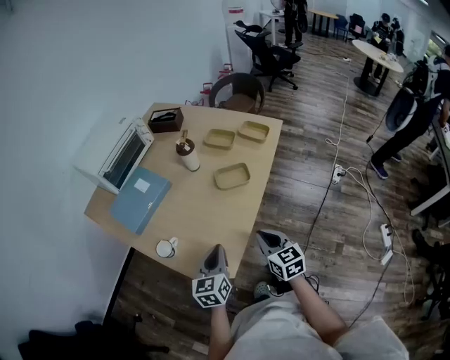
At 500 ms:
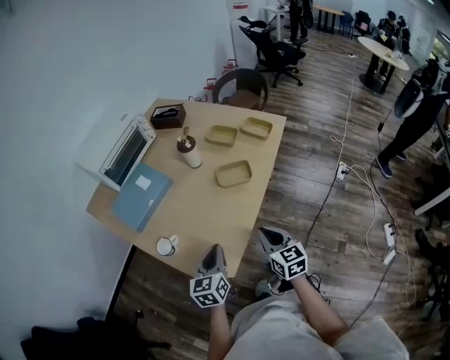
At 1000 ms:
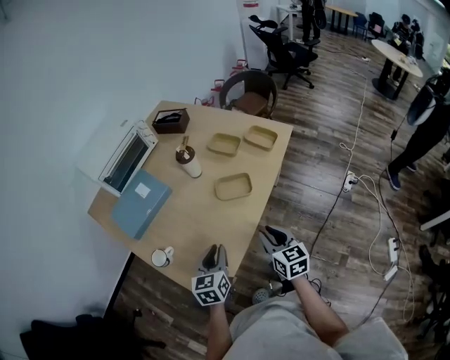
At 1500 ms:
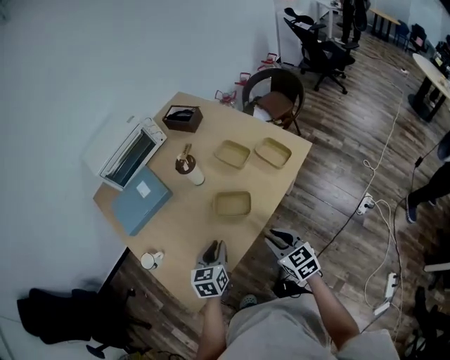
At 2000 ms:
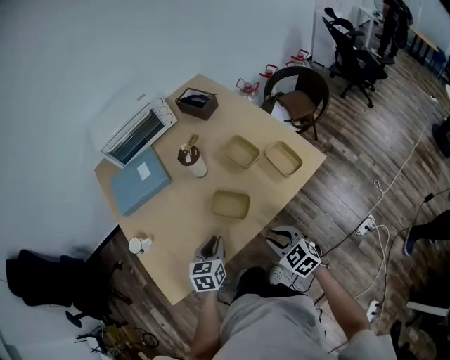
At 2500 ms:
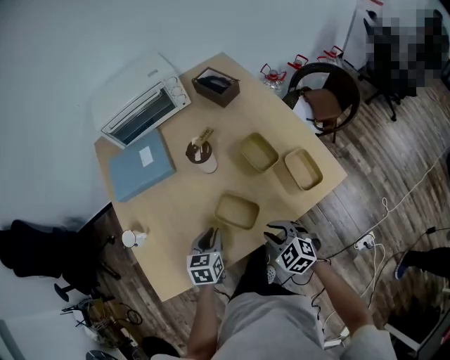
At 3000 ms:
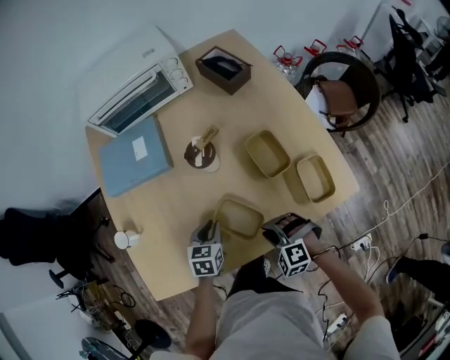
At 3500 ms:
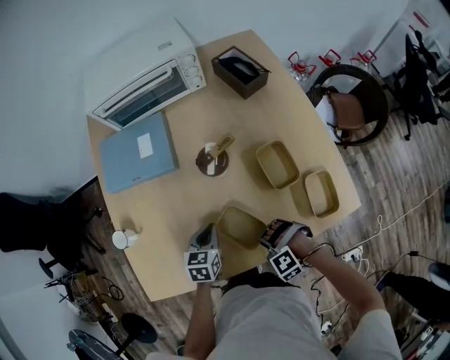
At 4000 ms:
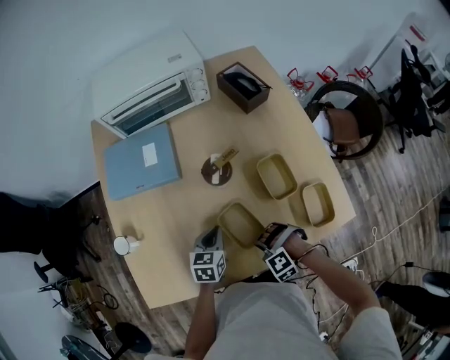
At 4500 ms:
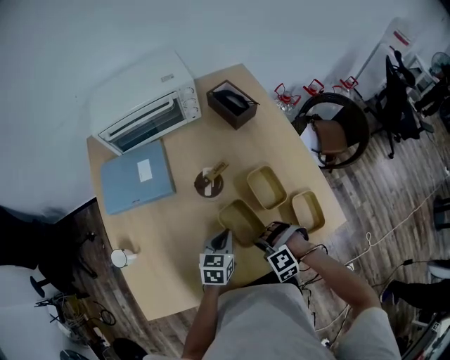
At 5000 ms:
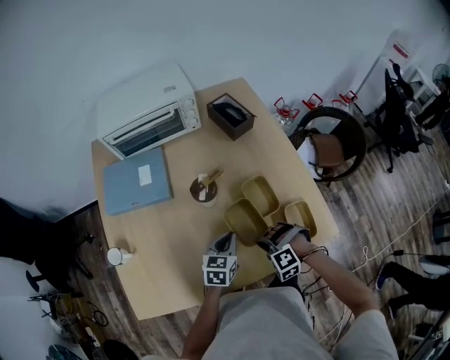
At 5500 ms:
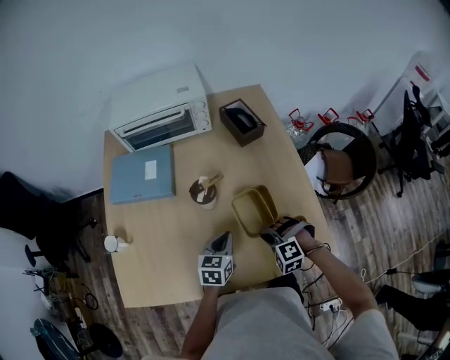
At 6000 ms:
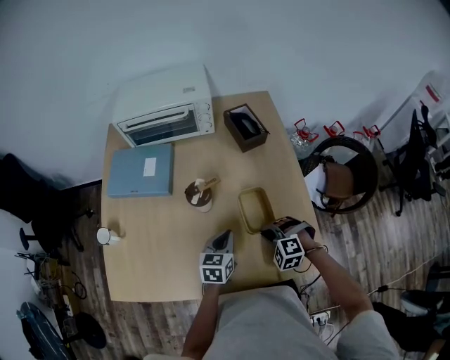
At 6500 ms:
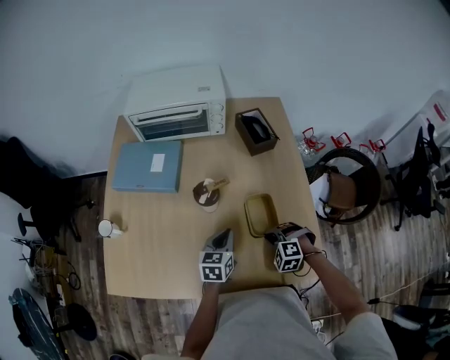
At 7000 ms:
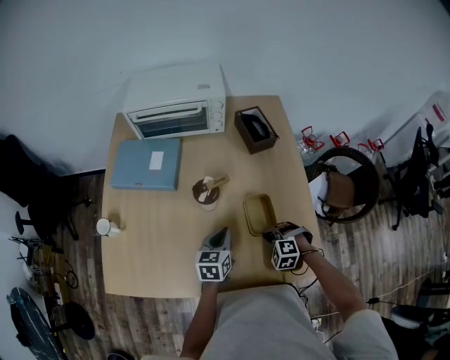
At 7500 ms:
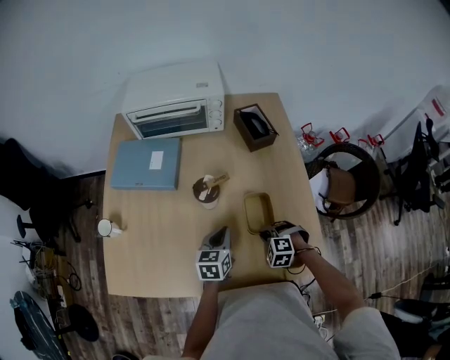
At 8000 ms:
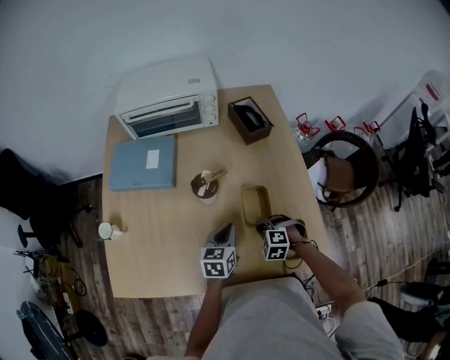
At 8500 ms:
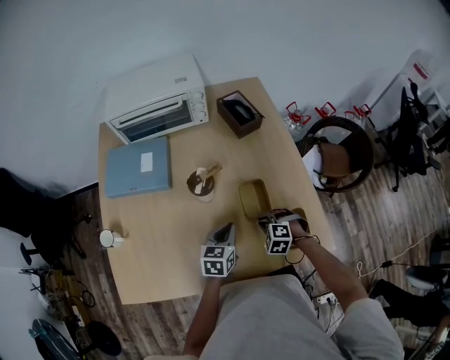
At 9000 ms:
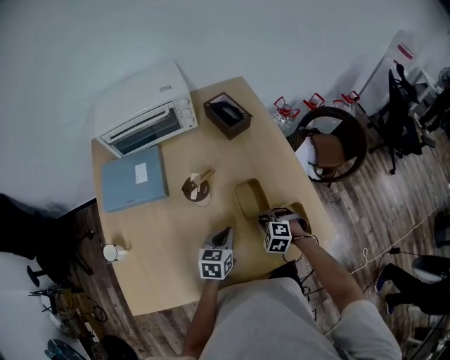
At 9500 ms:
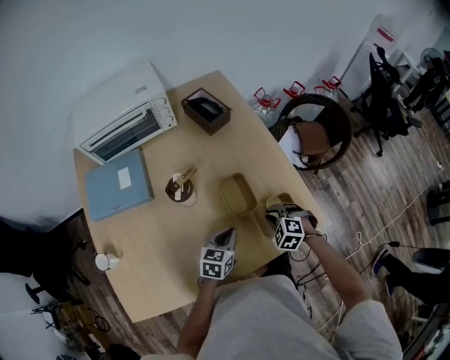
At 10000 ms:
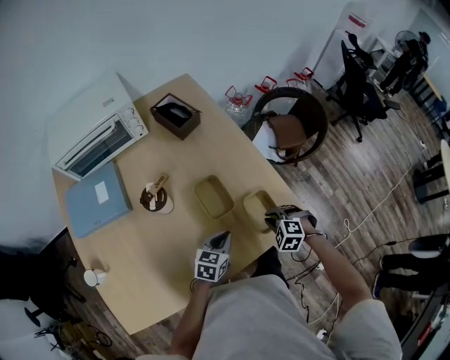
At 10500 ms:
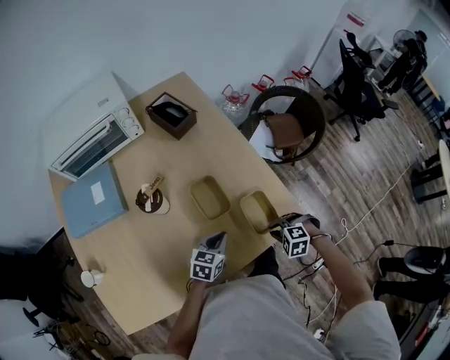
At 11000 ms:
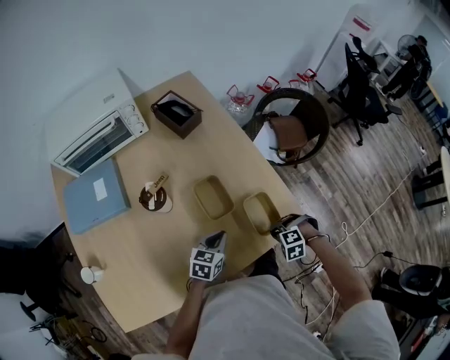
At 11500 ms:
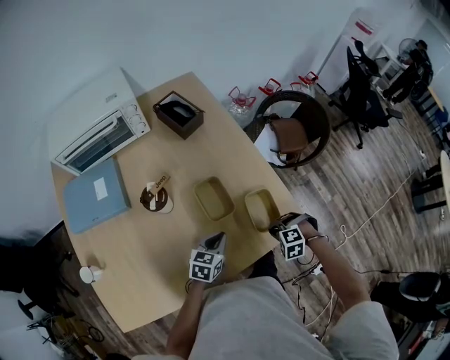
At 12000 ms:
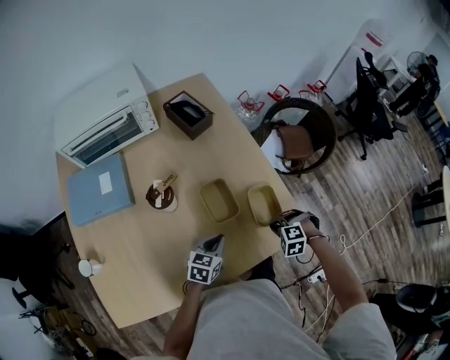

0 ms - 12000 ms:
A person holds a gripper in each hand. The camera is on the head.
0 ms - 2000 ms: The right gripper moves roughly 30 cm, turns by some 50 degrees, and opens up, while the left gripper ends up roughly 25 cm from where it was, and rotates roughly 30 degrees.
2000 ms - 4000 ms: The two grippers go about 20 cm forward and downward. The right gripper rolls counterclockwise, seen from behind, by roughly 80 degrees.
4000 ms - 6000 ms: The right gripper travels to the right, forward and upward by about 20 cm. Meanwhile the left gripper heads to the right, covering roughly 15 cm.
6000 ms - 8000 ms: The right gripper goes roughly 5 cm downward.
8000 ms - 10000 ms: The left gripper shifts by roughly 15 cm, and changes its angle by some 40 degrees; the right gripper changes place by roughly 15 cm, and turns by about 30 degrees.

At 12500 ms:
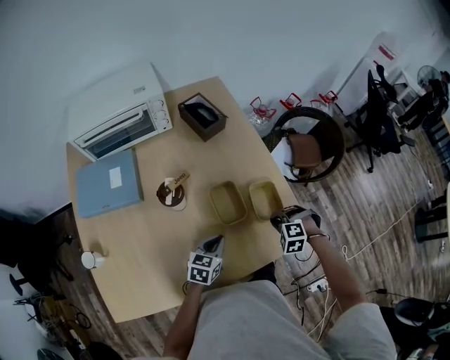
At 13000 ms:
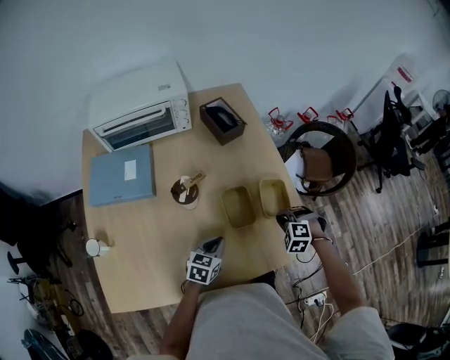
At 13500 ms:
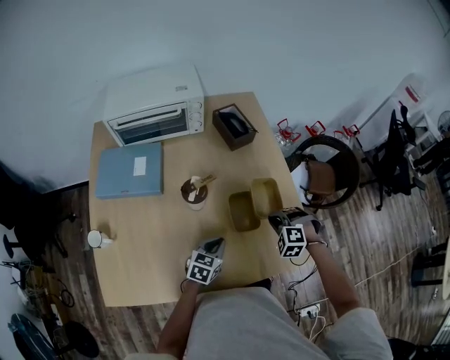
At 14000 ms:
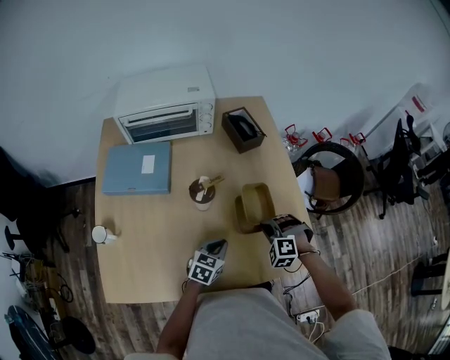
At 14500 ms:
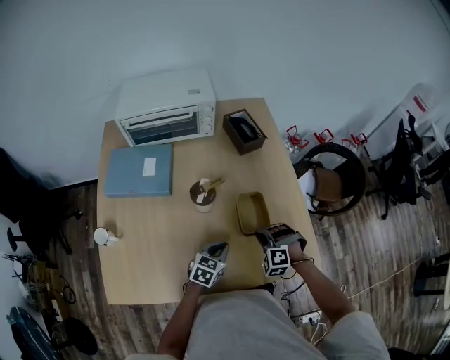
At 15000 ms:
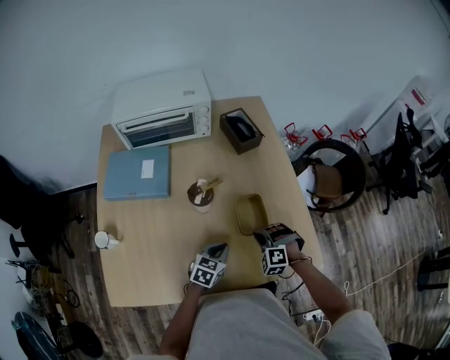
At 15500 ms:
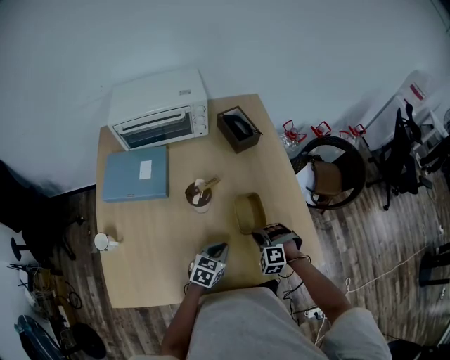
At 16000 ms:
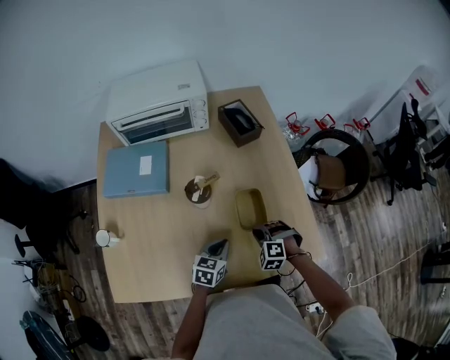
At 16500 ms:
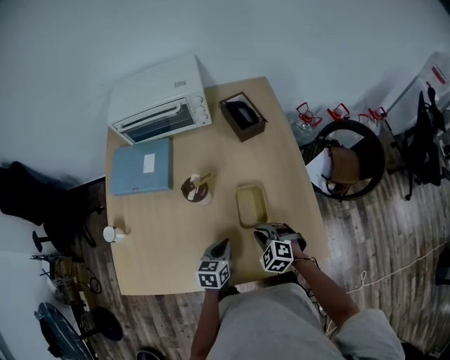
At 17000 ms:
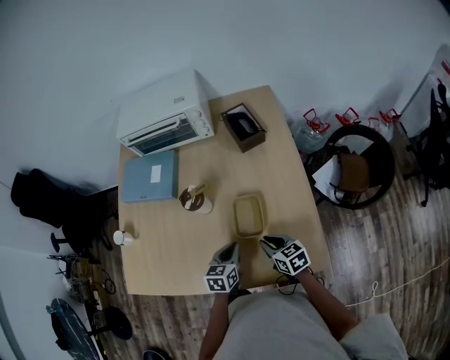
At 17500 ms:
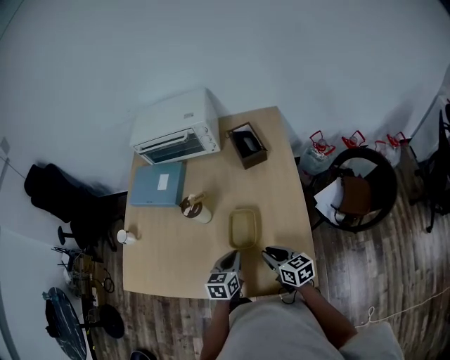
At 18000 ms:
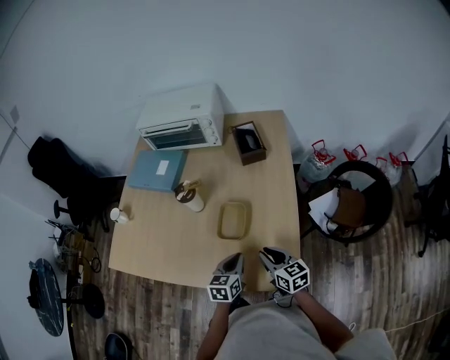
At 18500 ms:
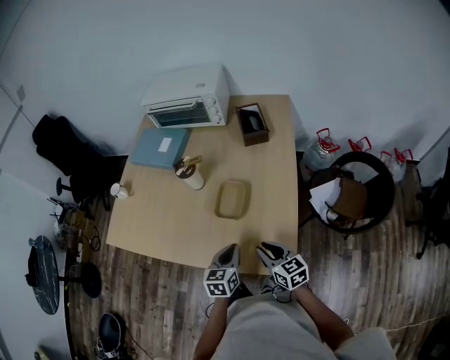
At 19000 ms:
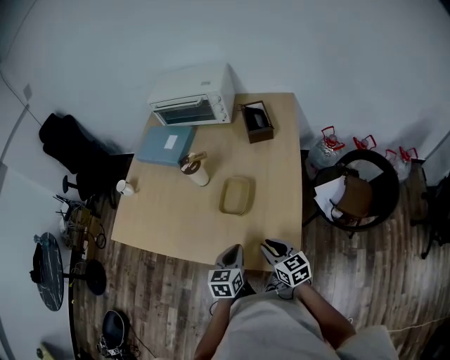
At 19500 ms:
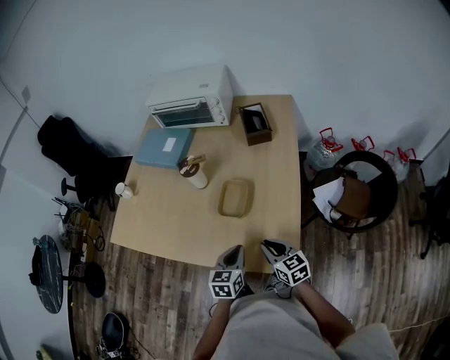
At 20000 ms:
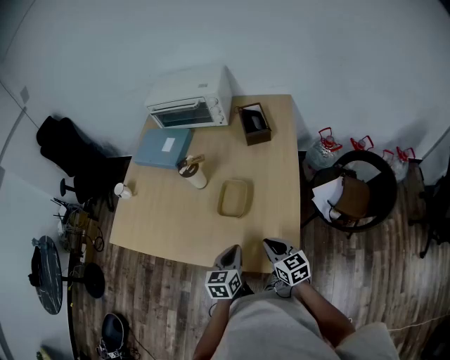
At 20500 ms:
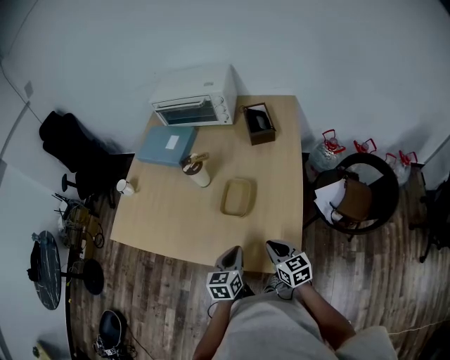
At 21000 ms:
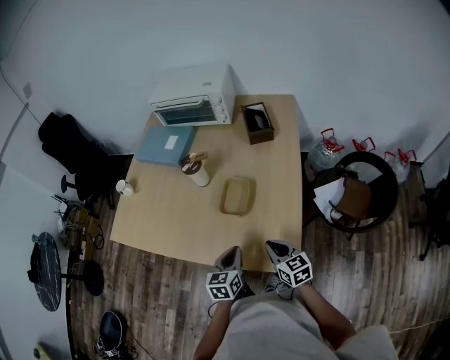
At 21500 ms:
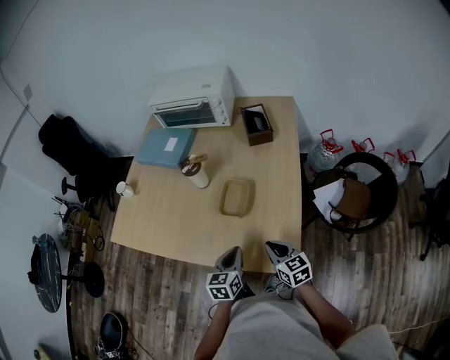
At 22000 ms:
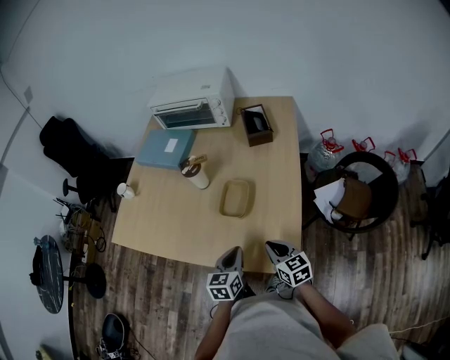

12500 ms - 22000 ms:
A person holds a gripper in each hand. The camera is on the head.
12500 ms - 14500 ms: The right gripper shifts approximately 15 cm to the left, and swivels some 20 degrees. Meanwhile the left gripper goes approximately 5 cm to the left.
14500 ms - 16500 ms: The left gripper rotates about 20 degrees, while the right gripper rotates approximately 30 degrees.
16500 ms - 18000 ms: The left gripper is displaced to the right and backward by about 15 cm; the right gripper shifts some 15 cm to the right, upward and backward, and tilts its fingers approximately 30 degrees upward.
18000 ms - 20000 ms: The left gripper travels backward by about 5 cm.
20000 ms - 22000 ms: There are only small adjustments of the grippers.

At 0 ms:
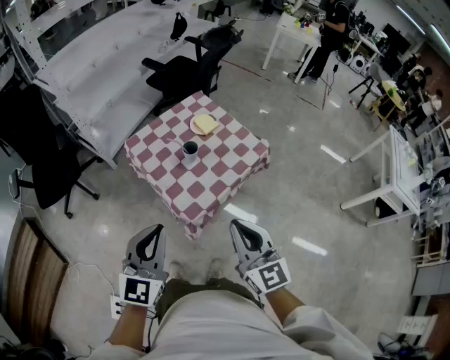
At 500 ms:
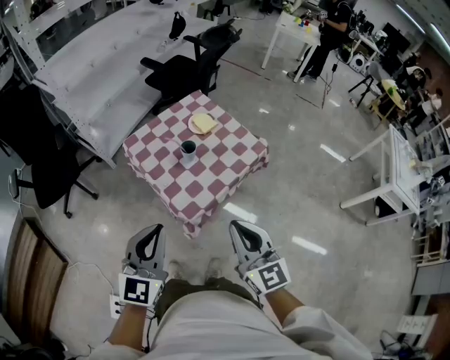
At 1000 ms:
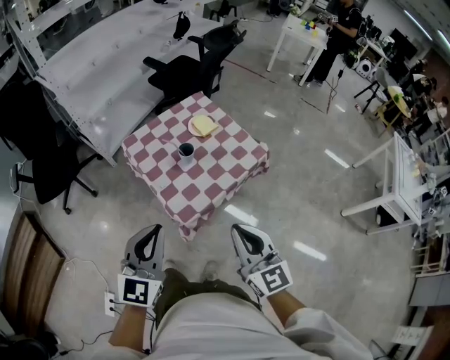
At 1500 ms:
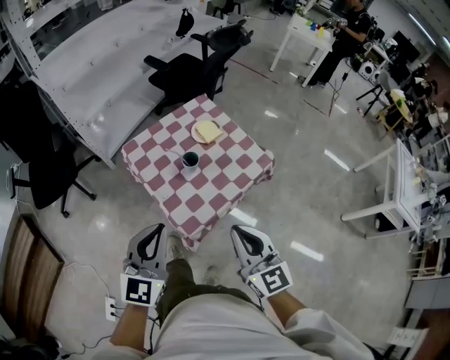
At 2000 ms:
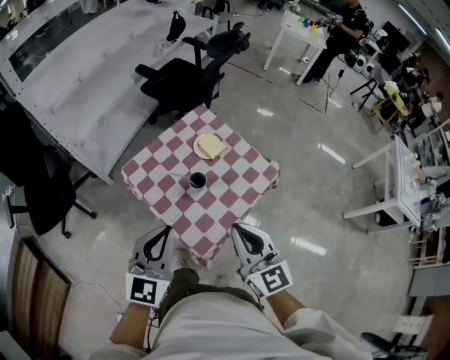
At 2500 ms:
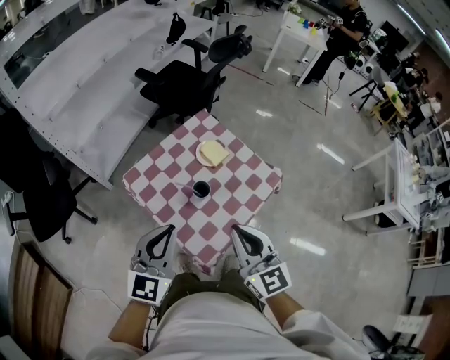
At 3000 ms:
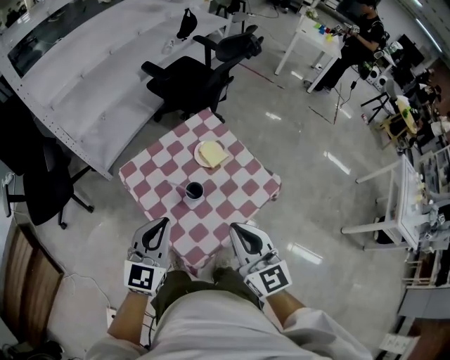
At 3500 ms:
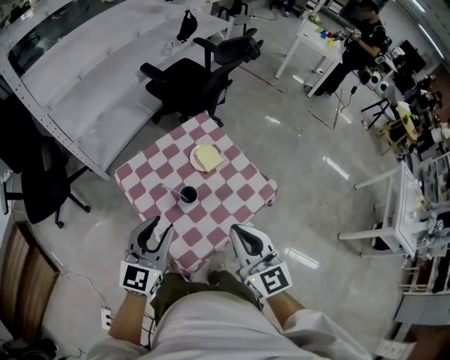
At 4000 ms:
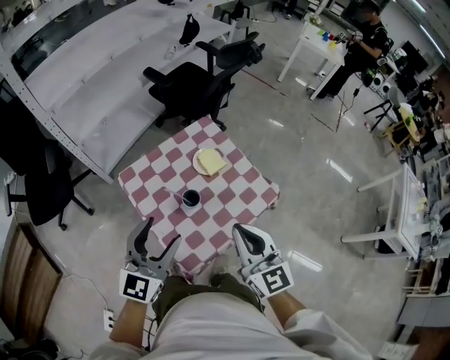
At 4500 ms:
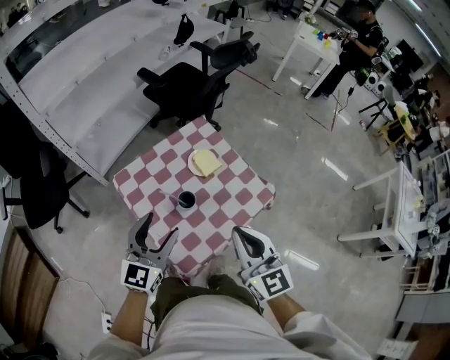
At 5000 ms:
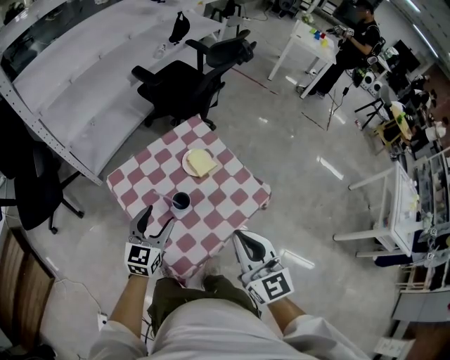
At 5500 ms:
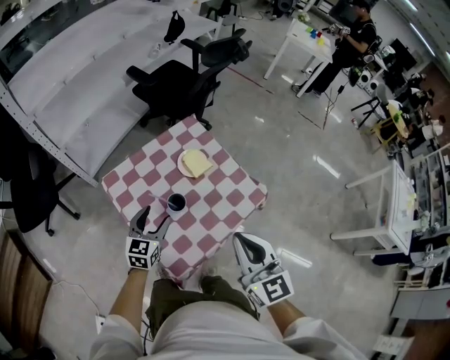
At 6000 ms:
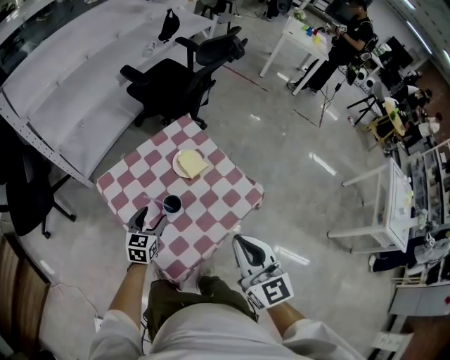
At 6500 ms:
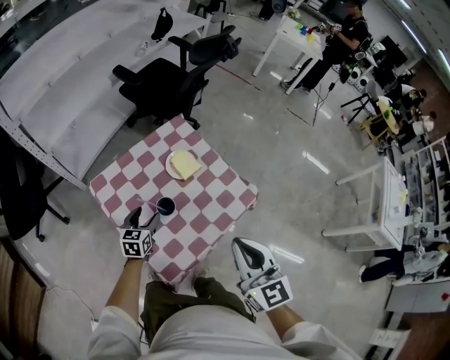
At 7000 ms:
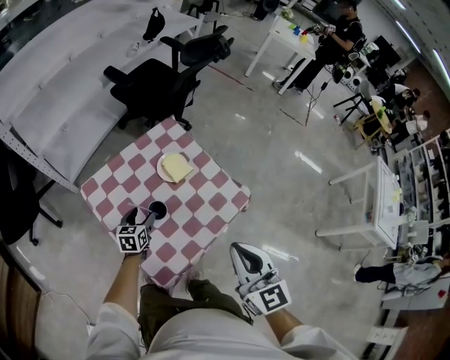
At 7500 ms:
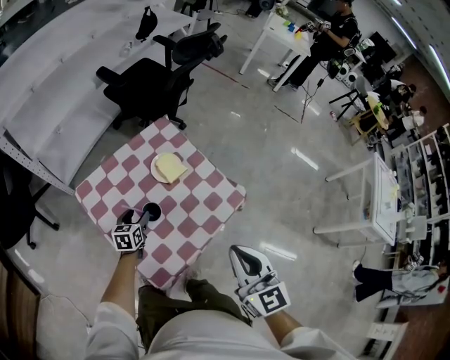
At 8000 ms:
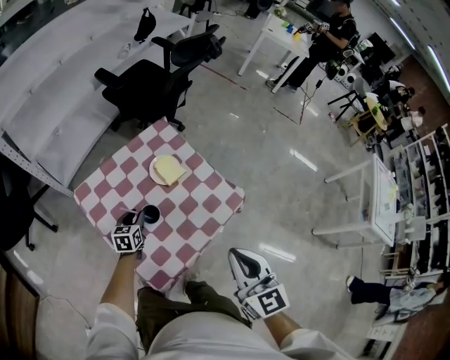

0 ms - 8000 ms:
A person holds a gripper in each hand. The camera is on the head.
0 ms - 2000 ms: The grippers both shift forward by about 20 cm.
2000 ms - 4000 ms: The right gripper moves forward and to the right, some 10 cm; the left gripper is displaced forward by about 5 cm, and opens.
4000 ms - 6000 ms: The left gripper is displaced downward and forward by roughly 25 cm, and rotates roughly 30 degrees.
6000 ms - 8000 ms: The left gripper heads downward and forward, covering roughly 10 cm, and closes.
